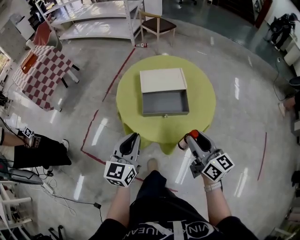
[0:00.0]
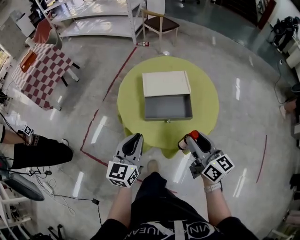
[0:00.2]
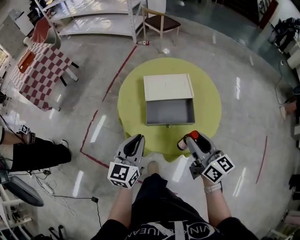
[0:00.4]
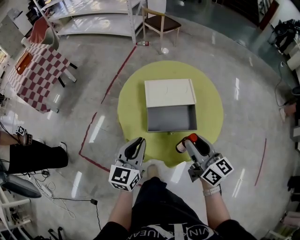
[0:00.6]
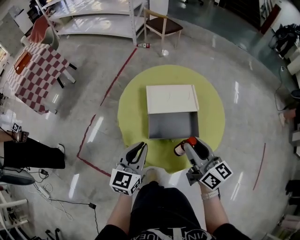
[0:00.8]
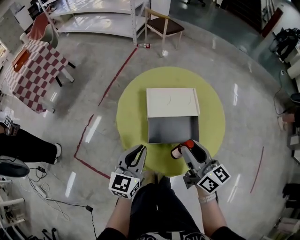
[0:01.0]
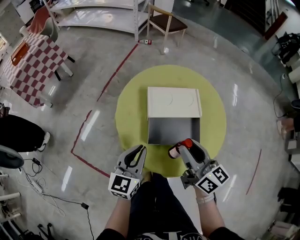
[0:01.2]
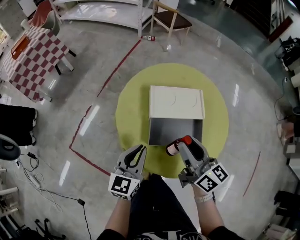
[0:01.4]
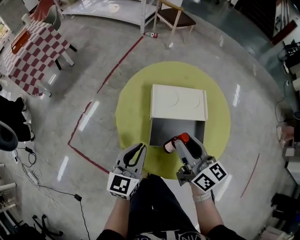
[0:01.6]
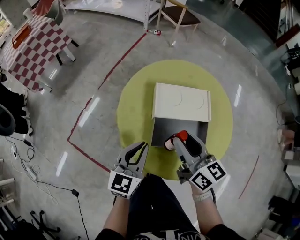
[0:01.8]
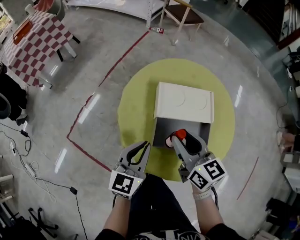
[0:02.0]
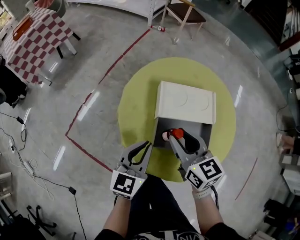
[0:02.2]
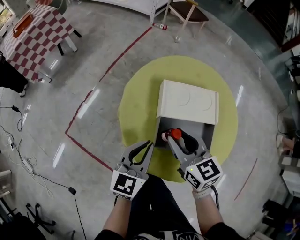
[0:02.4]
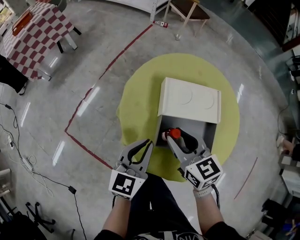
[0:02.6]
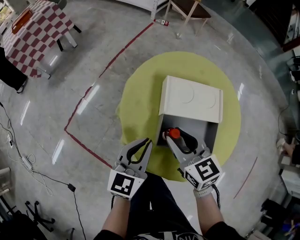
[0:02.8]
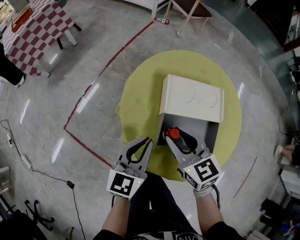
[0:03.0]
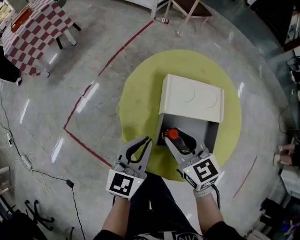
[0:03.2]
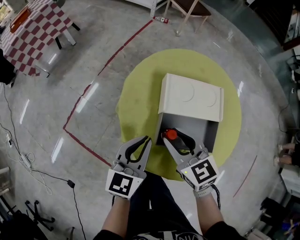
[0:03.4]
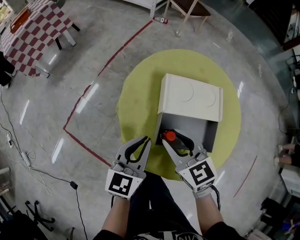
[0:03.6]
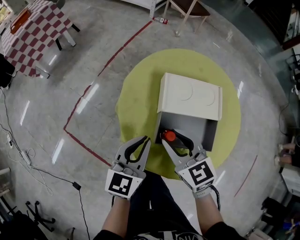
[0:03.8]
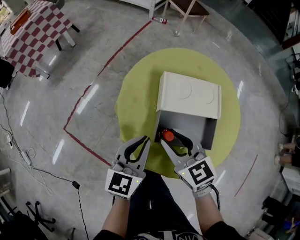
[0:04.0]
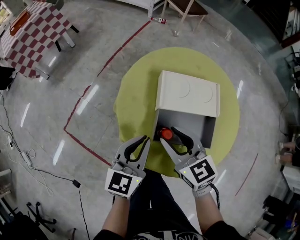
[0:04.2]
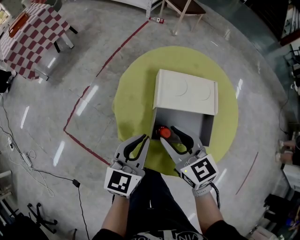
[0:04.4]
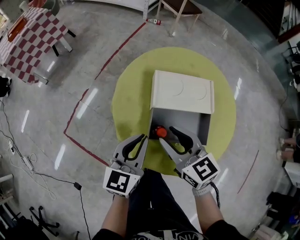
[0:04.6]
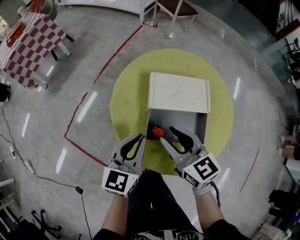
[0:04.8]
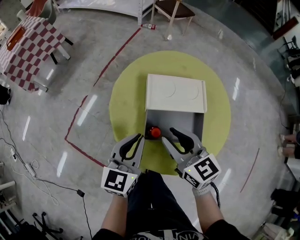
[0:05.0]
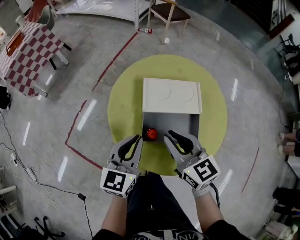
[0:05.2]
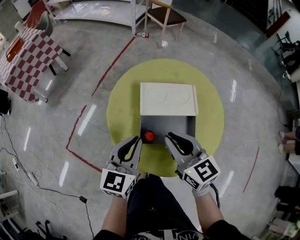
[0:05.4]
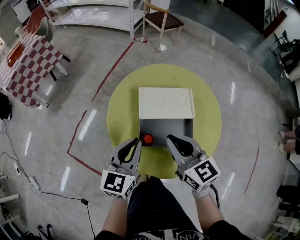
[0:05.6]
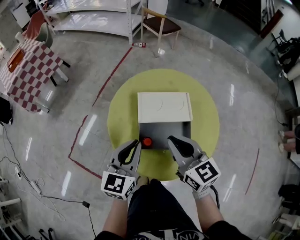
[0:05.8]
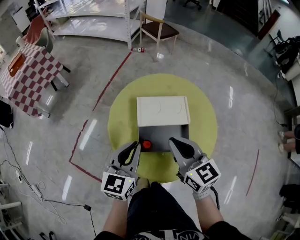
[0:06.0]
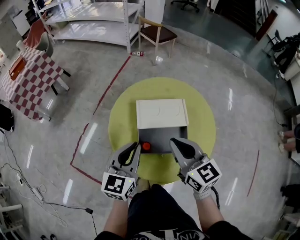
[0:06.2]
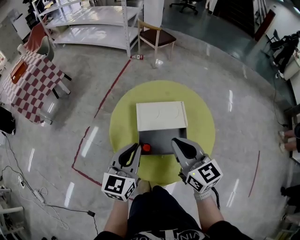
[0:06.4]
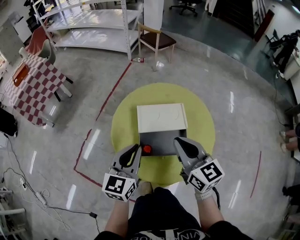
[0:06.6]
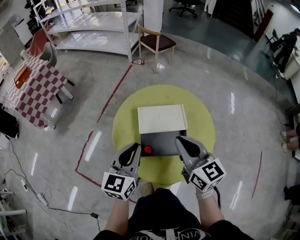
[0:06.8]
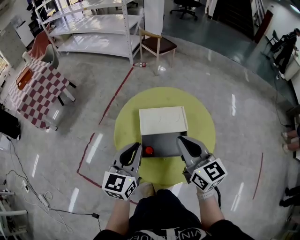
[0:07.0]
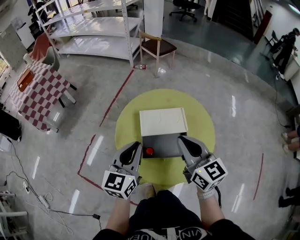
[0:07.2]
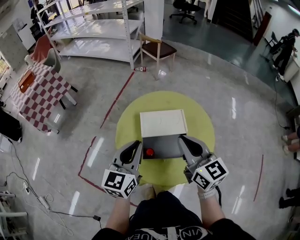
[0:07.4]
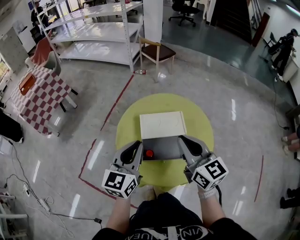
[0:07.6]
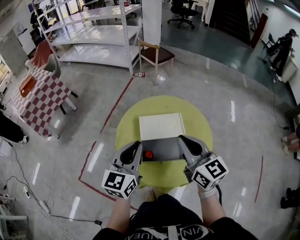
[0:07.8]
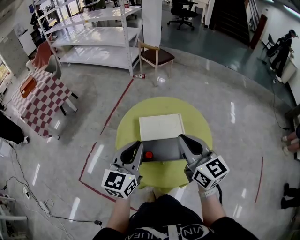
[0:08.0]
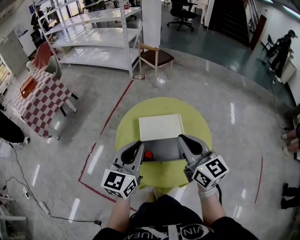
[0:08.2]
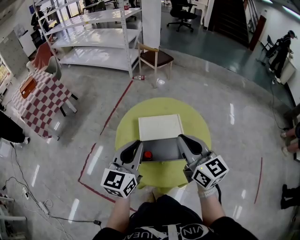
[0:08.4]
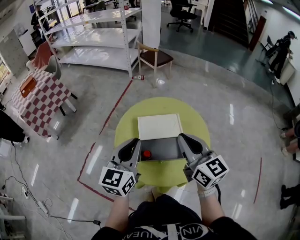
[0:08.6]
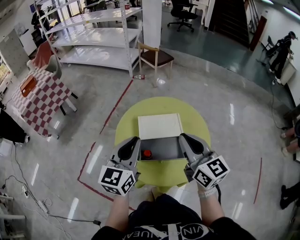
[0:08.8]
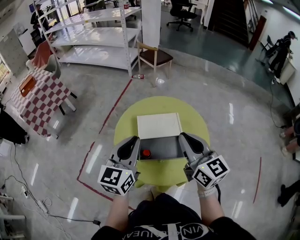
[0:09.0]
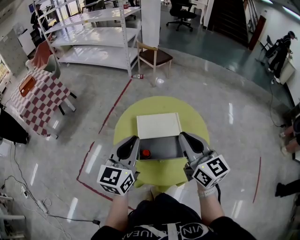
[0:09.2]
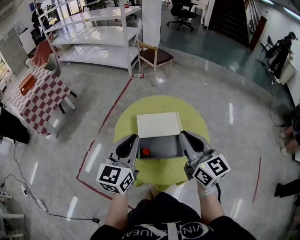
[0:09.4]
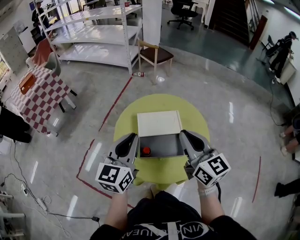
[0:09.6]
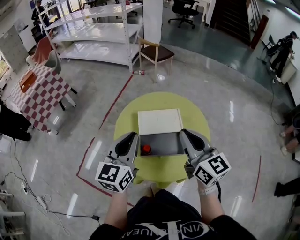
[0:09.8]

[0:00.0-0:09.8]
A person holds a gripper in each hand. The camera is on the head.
0:00.0 to 0:01.4: The right gripper moves forward, about 15 cm. Meanwhile the left gripper travels forward and downward by approximately 15 cm.
0:01.4 to 0:02.8: The right gripper moves downward and to the left, about 10 cm, and changes its angle by about 40 degrees.
0:02.8 to 0:04.2: The grippers make only small movements.
0:04.2 to 0:05.6: The right gripper moves upward and to the right, about 10 cm, and closes, while the left gripper travels upward by some 5 cm.
0:05.6 to 0:07.0: The right gripper heads upward and to the right, covering about 10 cm. Meanwhile the left gripper travels upward by approximately 10 cm.
0:07.0 to 0:08.4: The left gripper is displaced upward by about 5 cm, while the right gripper shifts by approximately 5 cm.
0:08.4 to 0:09.8: The grippers stay close to where they were, moving slightly.

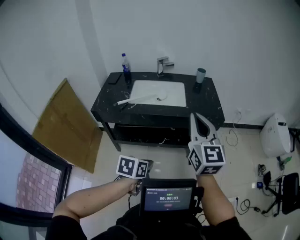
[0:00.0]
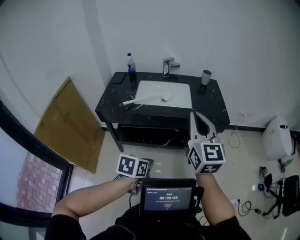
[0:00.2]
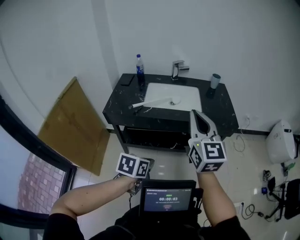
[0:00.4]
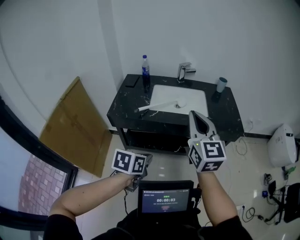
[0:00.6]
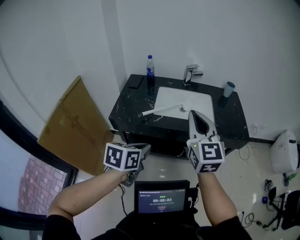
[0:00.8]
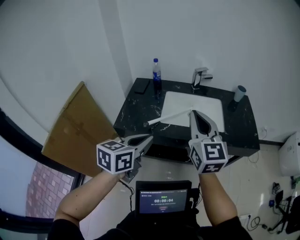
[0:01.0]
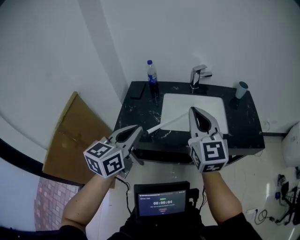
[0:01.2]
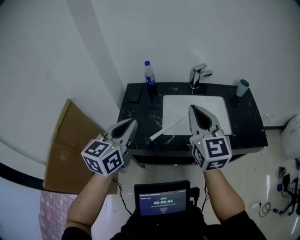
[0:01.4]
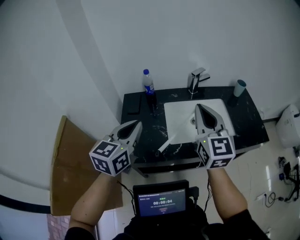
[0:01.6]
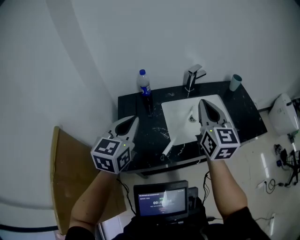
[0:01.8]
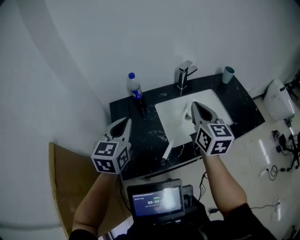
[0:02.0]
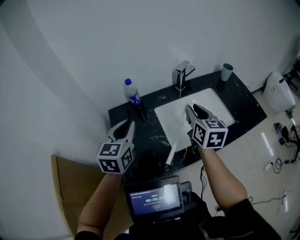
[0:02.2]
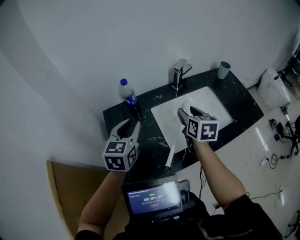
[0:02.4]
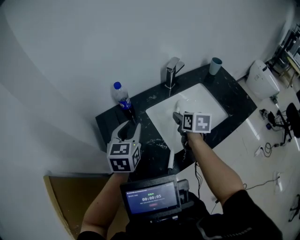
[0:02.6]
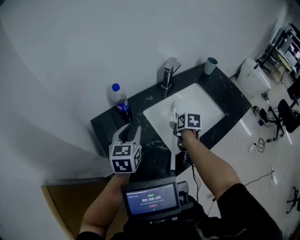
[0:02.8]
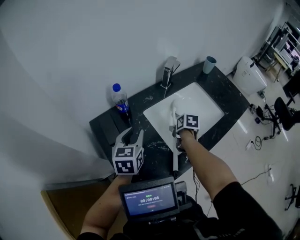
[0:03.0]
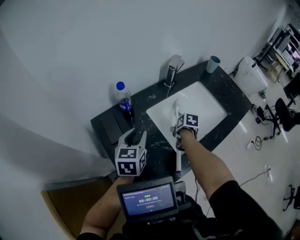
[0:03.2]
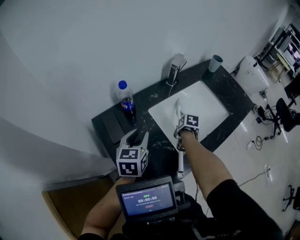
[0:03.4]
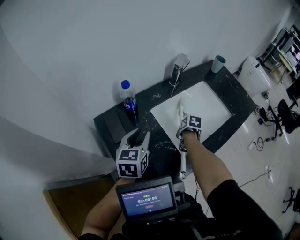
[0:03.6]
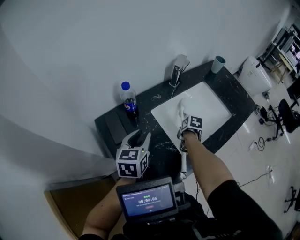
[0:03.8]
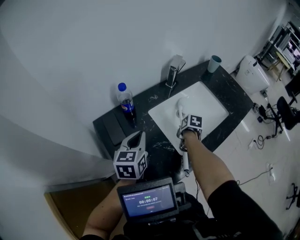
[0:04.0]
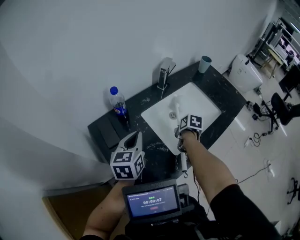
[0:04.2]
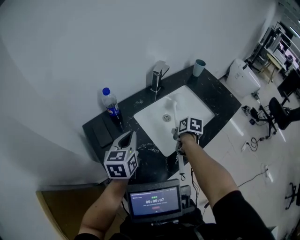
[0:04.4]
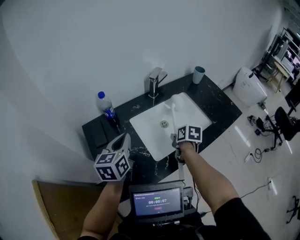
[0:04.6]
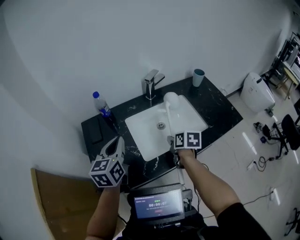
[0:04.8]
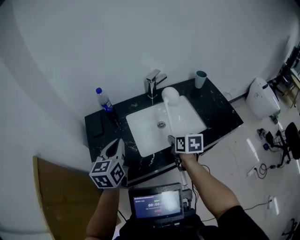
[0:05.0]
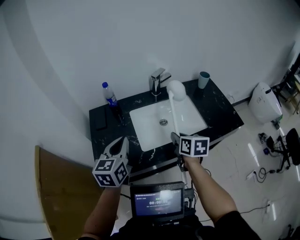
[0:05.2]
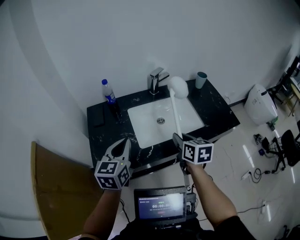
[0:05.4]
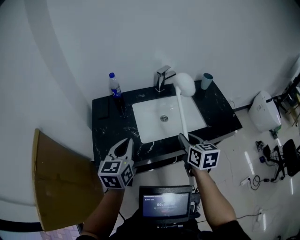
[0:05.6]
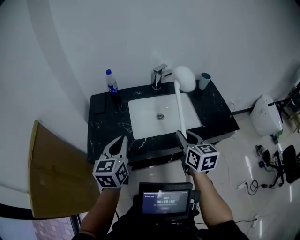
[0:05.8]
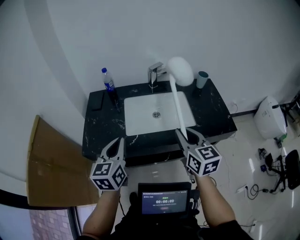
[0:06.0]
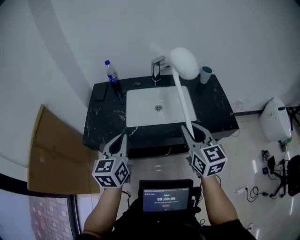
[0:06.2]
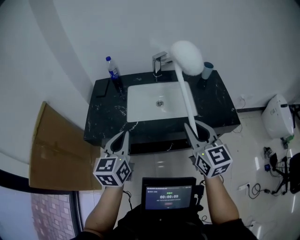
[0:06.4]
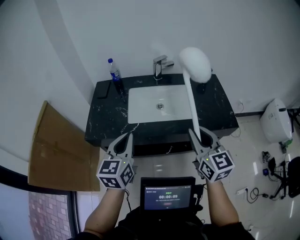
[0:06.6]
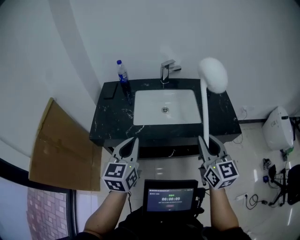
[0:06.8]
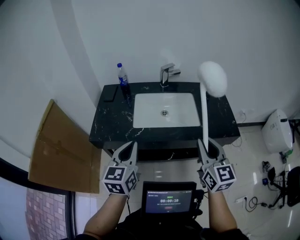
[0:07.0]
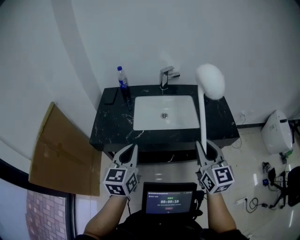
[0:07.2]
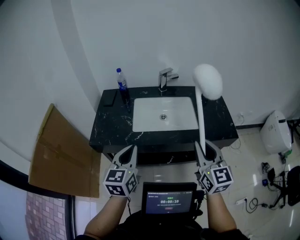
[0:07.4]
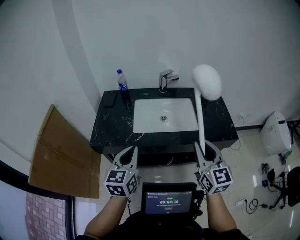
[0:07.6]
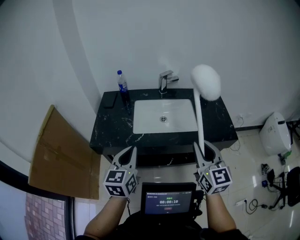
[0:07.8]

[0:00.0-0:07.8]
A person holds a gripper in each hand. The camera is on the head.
0:00.0 to 0:01.6: Both grippers are carried to the left and forward, roughly 60 cm. The left gripper is displaced upward by some 20 cm, and tilts its fingers roughly 30 degrees upward.
0:01.6 to 0:03.2: The right gripper shifts roughly 40 cm downward and forward, points its fingers about 70 degrees further downward, and opens up. The left gripper travels forward, downward and to the left by approximately 30 cm, rotates some 20 degrees, and opens its fingers.
0:03.2 to 0:04.6: The grippers both shift to the right and upward by some 10 cm. The right gripper closes. The left gripper closes up.
0:04.6 to 0:06.2: The right gripper travels backward, upward and to the right by roughly 40 cm, and points its fingers some 40 degrees further upward. Meanwhile the left gripper is displaced backward and to the right by roughly 35 cm, and turns by roughly 30 degrees.
0:06.2 to 0:07.8: Both grippers move backward, approximately 5 cm.

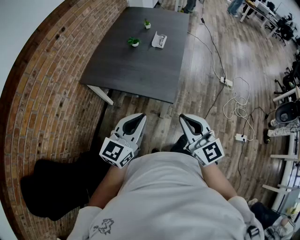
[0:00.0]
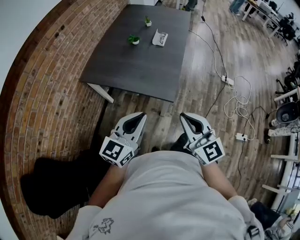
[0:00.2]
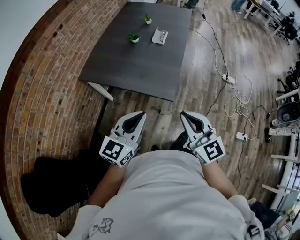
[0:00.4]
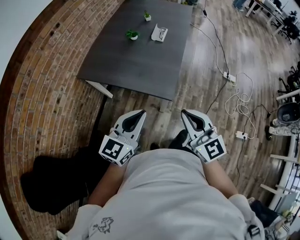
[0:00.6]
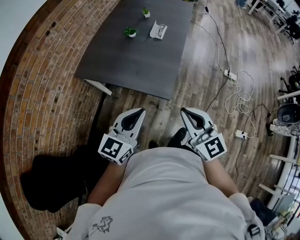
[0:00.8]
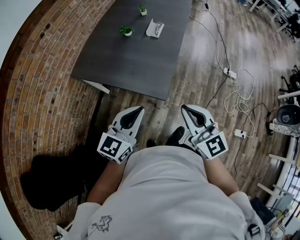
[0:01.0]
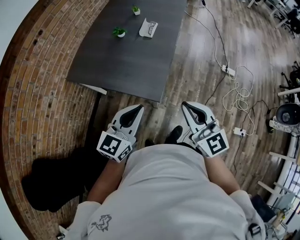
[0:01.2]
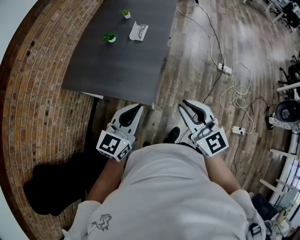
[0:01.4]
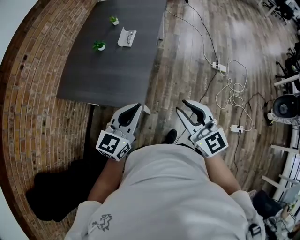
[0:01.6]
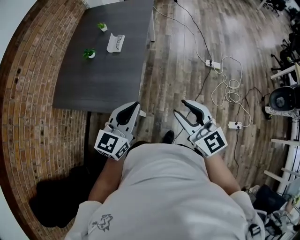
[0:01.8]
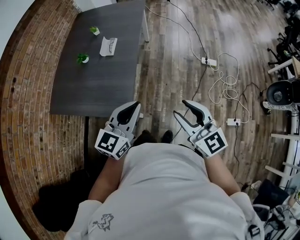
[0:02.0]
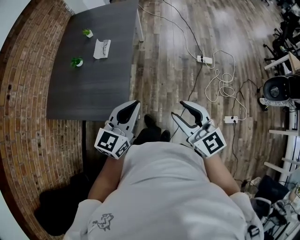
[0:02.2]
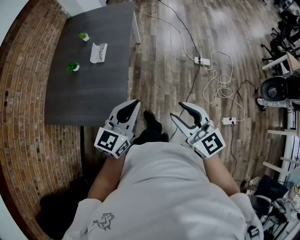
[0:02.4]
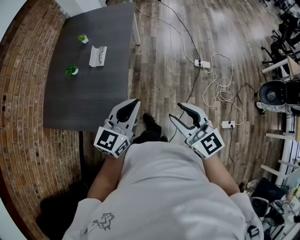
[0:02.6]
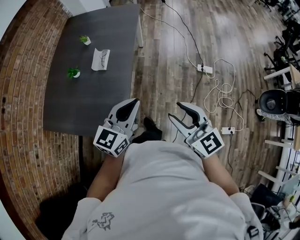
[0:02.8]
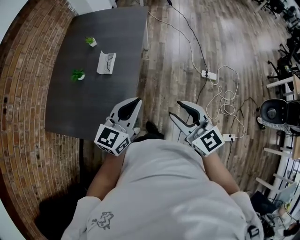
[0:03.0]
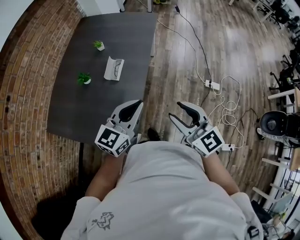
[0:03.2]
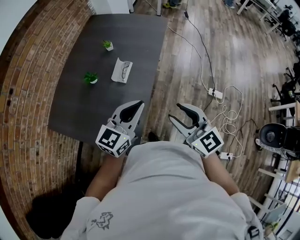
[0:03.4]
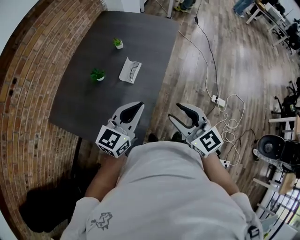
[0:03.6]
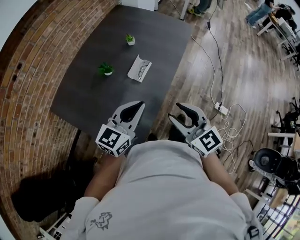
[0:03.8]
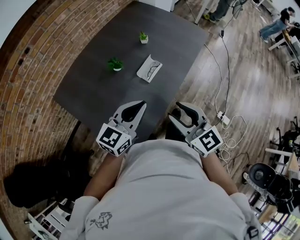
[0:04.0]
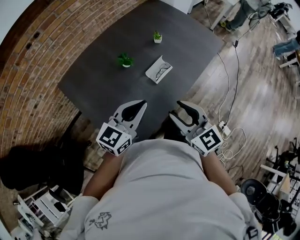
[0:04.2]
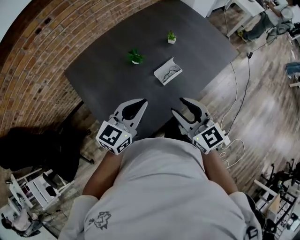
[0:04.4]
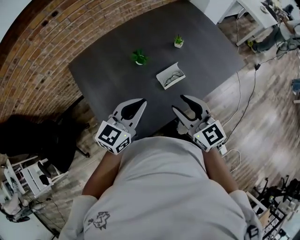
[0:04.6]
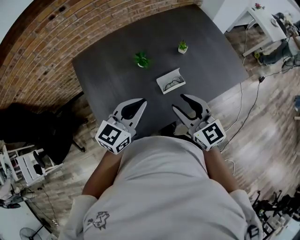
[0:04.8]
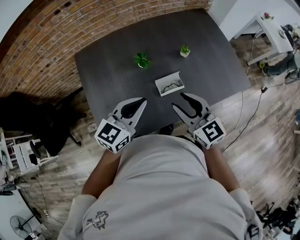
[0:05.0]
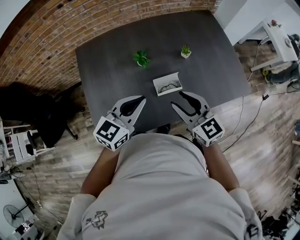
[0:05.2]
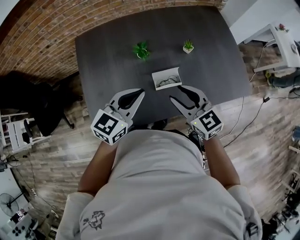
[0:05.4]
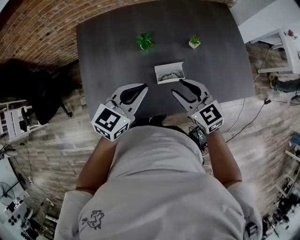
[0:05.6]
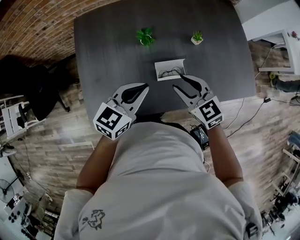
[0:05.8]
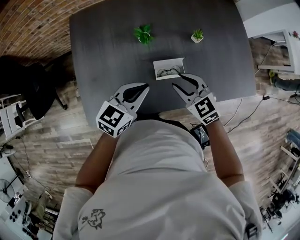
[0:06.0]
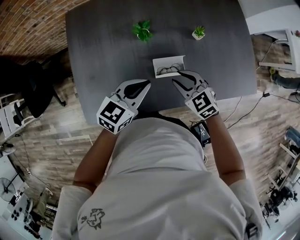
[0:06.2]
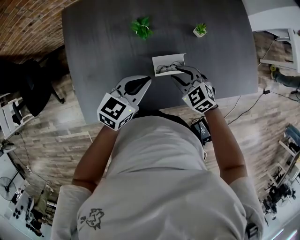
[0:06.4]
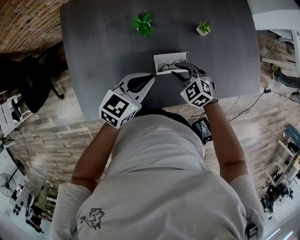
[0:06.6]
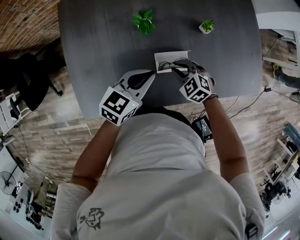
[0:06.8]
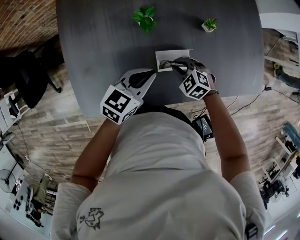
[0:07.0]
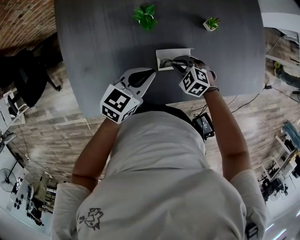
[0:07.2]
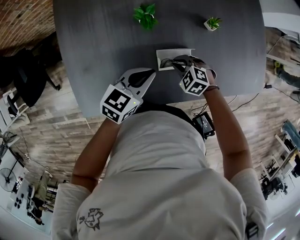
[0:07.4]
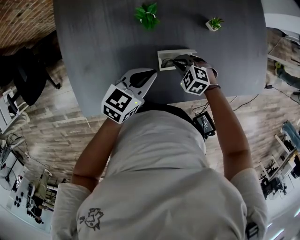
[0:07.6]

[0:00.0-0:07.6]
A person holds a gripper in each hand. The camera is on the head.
0:00.0 to 0:01.6: The two grippers go approximately 25 cm to the right and forward. The right gripper opens.
0:01.6 to 0:03.0: The two grippers go roughly 25 cm forward.
0:03.0 to 0:04.6: The right gripper shifts by approximately 35 cm, and changes its angle by approximately 50 degrees. Meanwhile the left gripper shifts by about 25 cm, and turns by approximately 40 degrees.
0:04.6 to 0:06.0: The left gripper shifts about 10 cm downward and to the right, and swivels some 20 degrees, while the right gripper is displaced downward, forward and to the right by about 20 cm, and turns by about 40 degrees.
0:06.0 to 0:07.6: The right gripper heads downward, covering approximately 20 cm, tips its fingers downward by approximately 30 degrees, and closes; the left gripper heads downward, covering roughly 10 cm.
